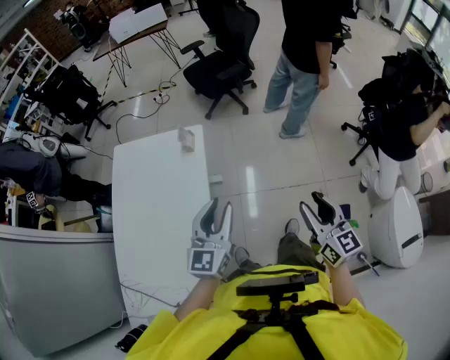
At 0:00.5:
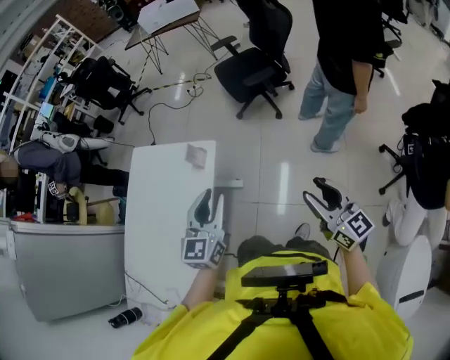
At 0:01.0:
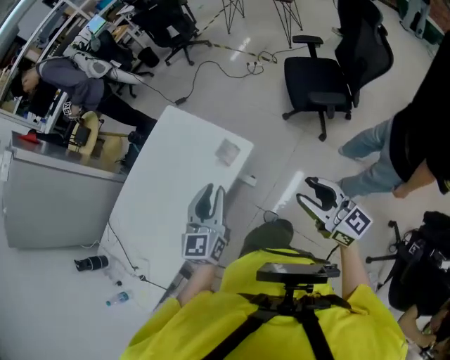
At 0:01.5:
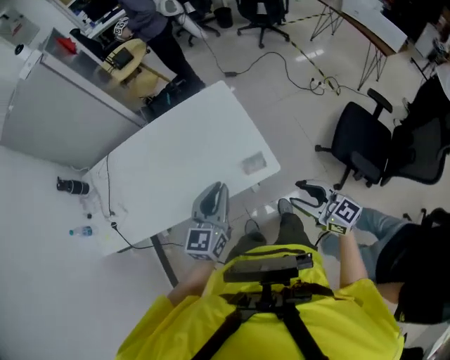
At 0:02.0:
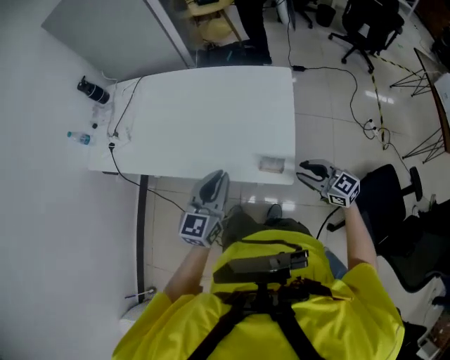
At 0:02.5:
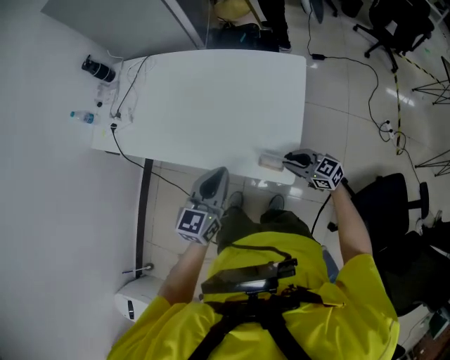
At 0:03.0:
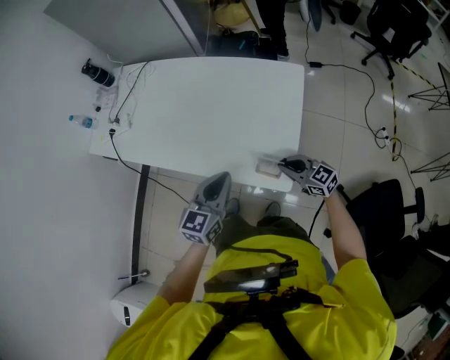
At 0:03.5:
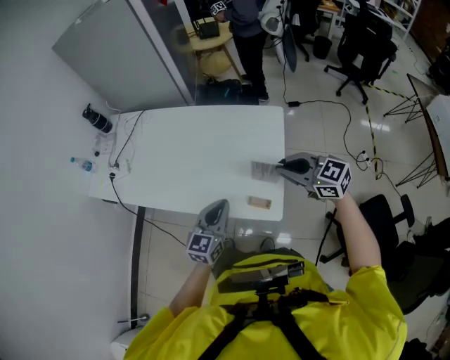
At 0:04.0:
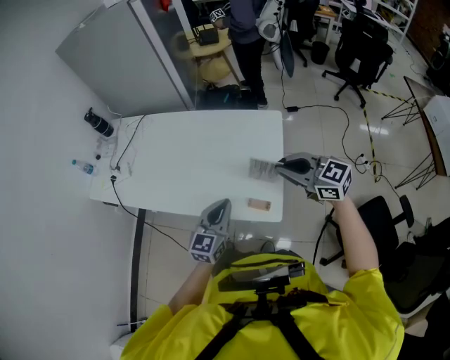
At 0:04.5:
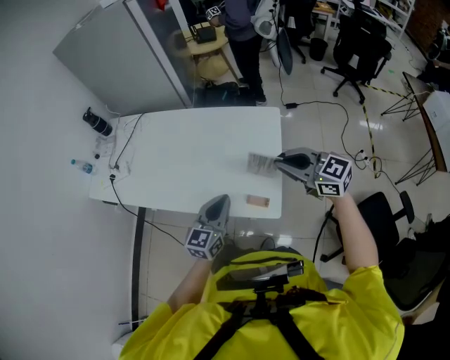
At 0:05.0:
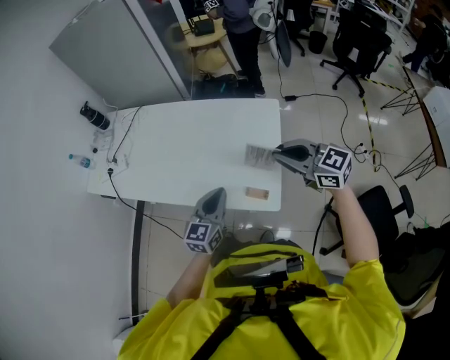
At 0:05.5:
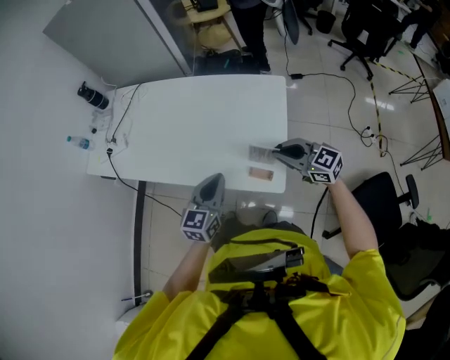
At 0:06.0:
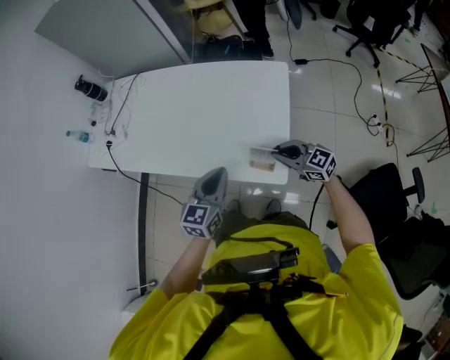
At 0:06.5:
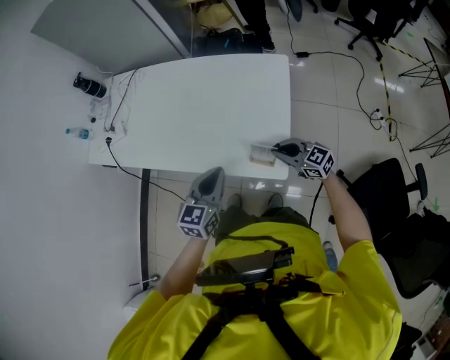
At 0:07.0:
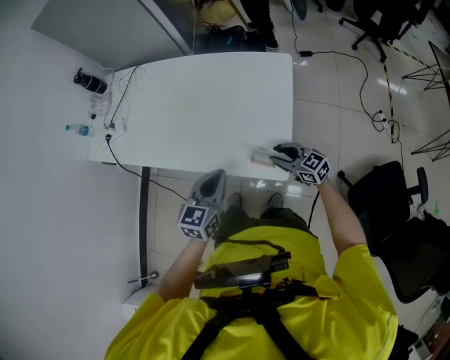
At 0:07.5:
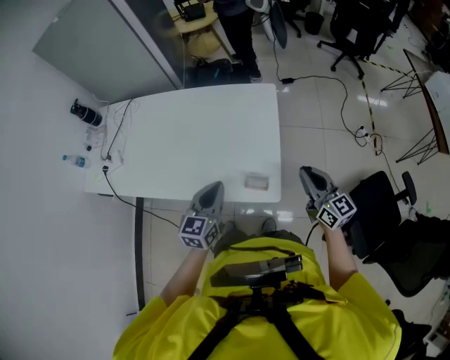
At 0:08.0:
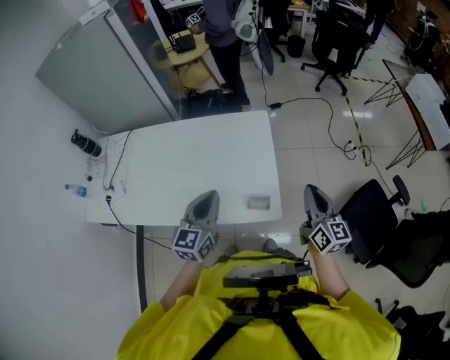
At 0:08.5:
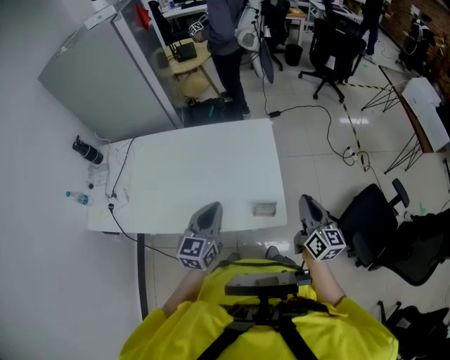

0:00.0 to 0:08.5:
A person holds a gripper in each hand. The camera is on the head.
0:00.0 to 0:02.0: The right gripper moves approximately 60 cm, and changes its angle by roughly 130 degrees; the left gripper ends up approximately 30 cm from where it was, changes its angle by some 90 degrees, and closes.
0:02.0 to 0:04.0: The right gripper travels upward and forward by roughly 20 cm, and closes its fingers. The left gripper is displaced to the right by about 5 cm.
0:04.0 to 0:06.5: The right gripper travels downward by roughly 25 cm.
0:06.5 to 0:08.5: The left gripper is displaced upward by roughly 10 cm. The right gripper heads upward, covering approximately 20 cm, turns by about 70 degrees, and opens and closes again.

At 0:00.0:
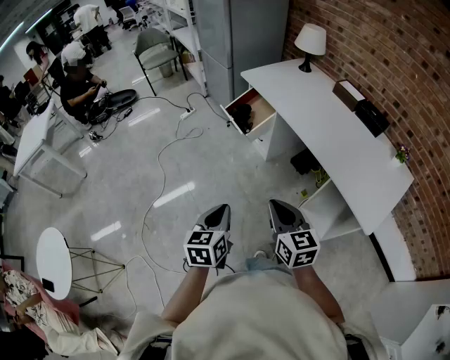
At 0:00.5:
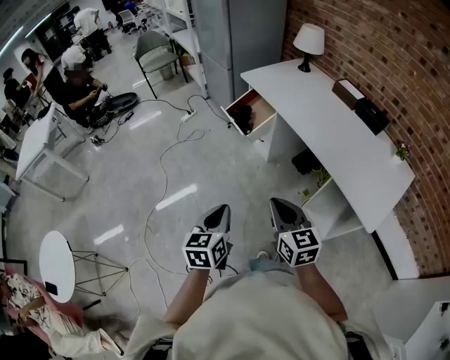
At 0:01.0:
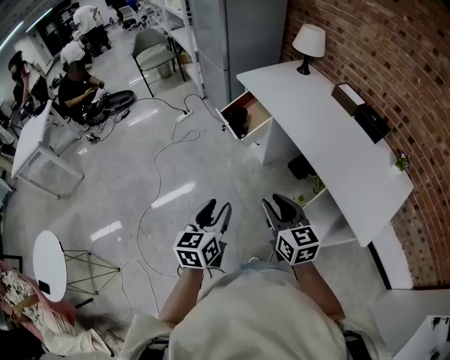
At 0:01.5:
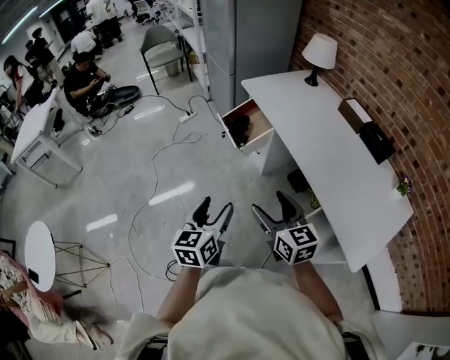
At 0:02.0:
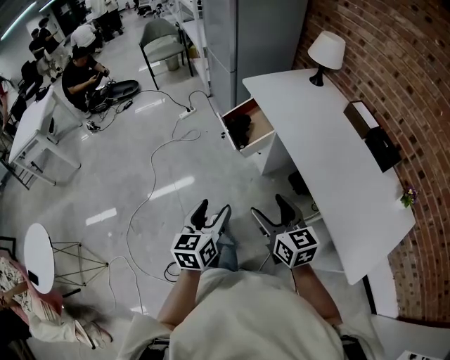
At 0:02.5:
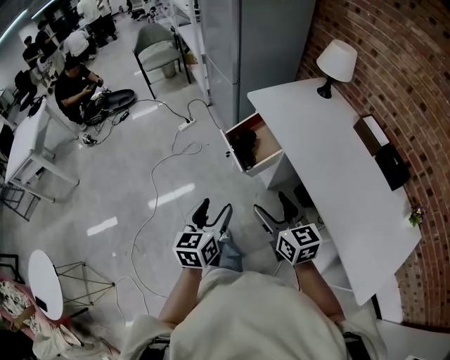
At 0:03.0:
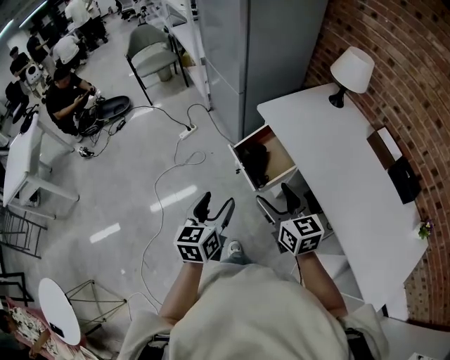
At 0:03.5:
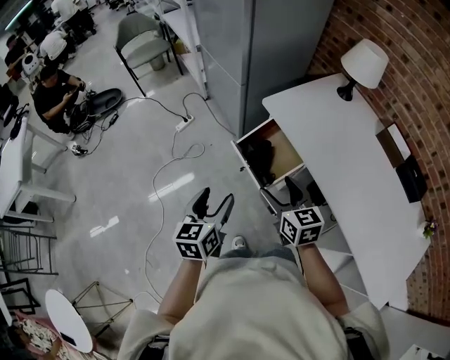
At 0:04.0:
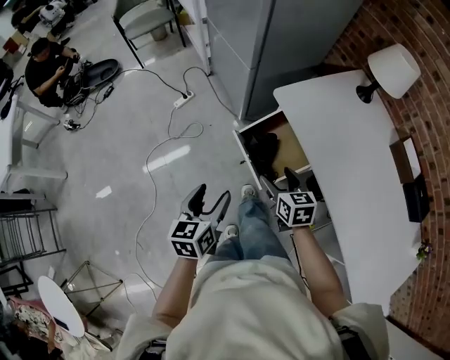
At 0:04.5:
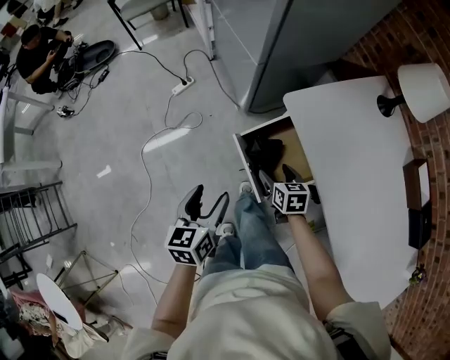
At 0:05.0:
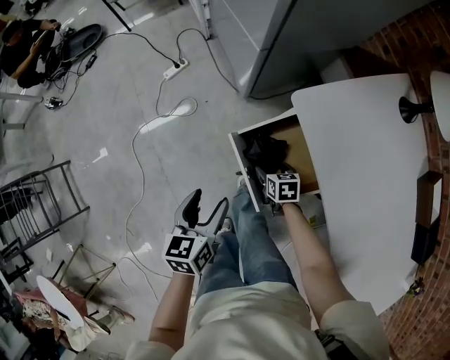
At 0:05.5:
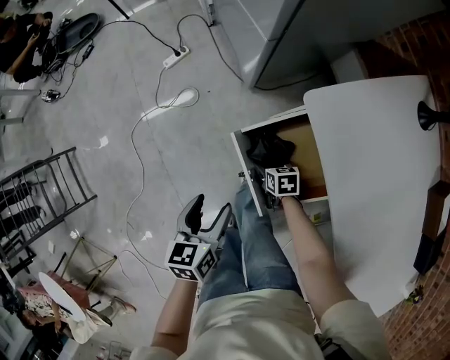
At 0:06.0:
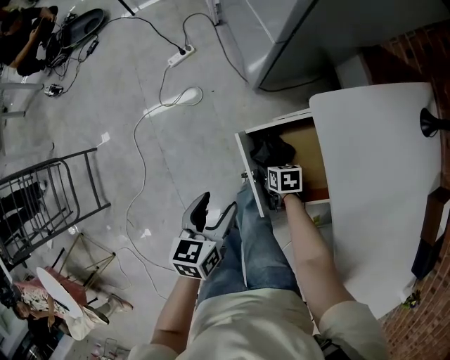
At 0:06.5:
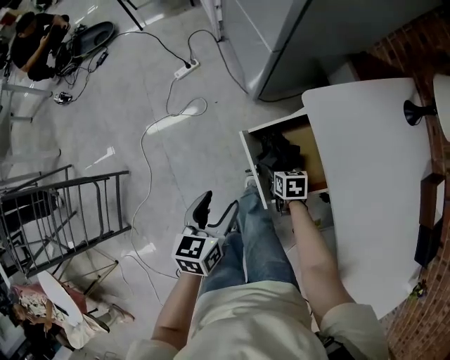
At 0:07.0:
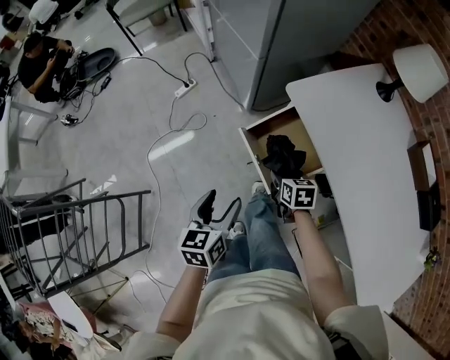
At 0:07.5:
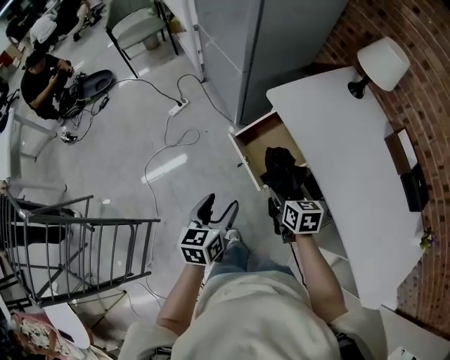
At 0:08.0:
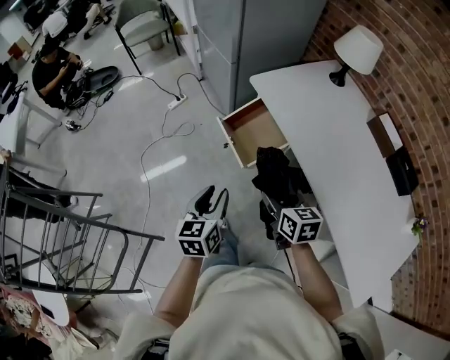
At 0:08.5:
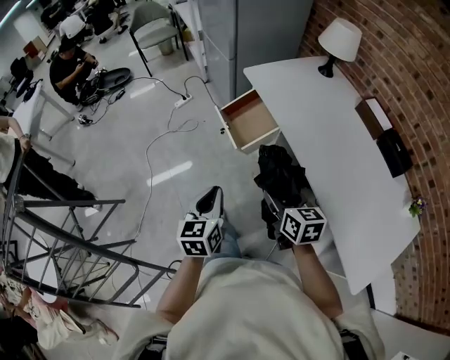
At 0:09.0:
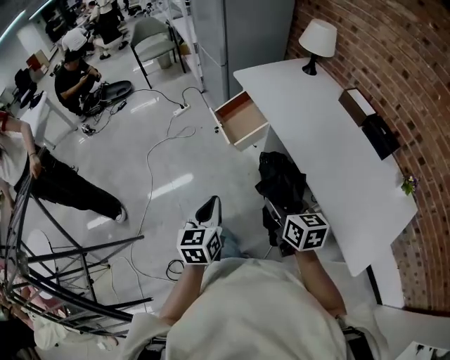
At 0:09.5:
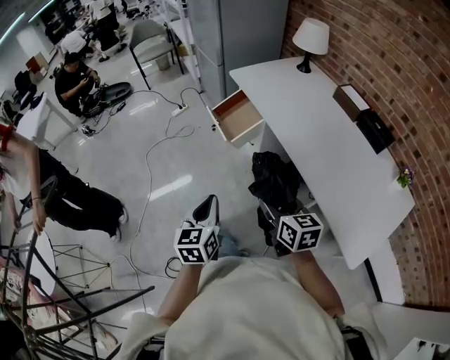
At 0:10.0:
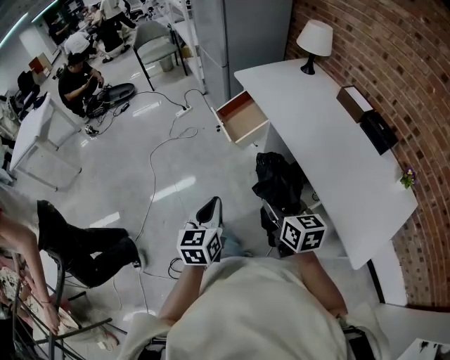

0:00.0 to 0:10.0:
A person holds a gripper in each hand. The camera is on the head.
0:00.0 to 0:02.0: Both grippers travel together forward and to the right, some 15 cm. The right gripper opens. The left gripper opens up.
0:02.0 to 0:04.0: Both grippers are carried forward, roughly 40 cm. The right gripper rotates about 20 degrees.
0:04.0 to 0:06.0: The right gripper heads downward and forward, covering approximately 35 cm, and turns by roughly 30 degrees; the left gripper is displaced downward and forward by roughly 20 cm.
0:06.0 to 0:08.0: The left gripper moves backward and upward, approximately 30 cm, and closes; the right gripper travels upward and backward by about 50 cm, and tilts its fingers roughly 30 degrees upward.
0:08.0 to 0:10.0: Both grippers move backward, roughly 30 cm. The left gripper closes its fingers.

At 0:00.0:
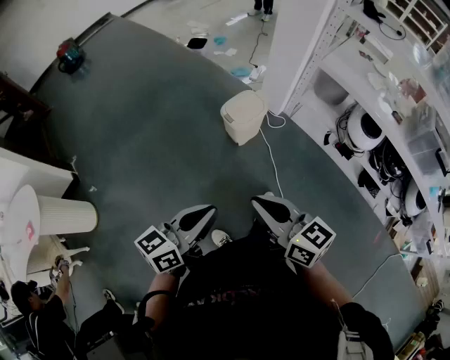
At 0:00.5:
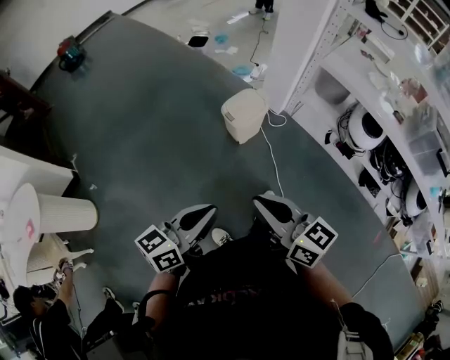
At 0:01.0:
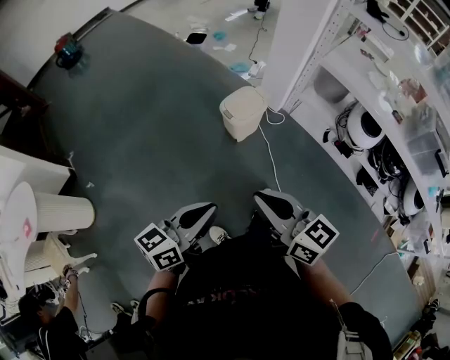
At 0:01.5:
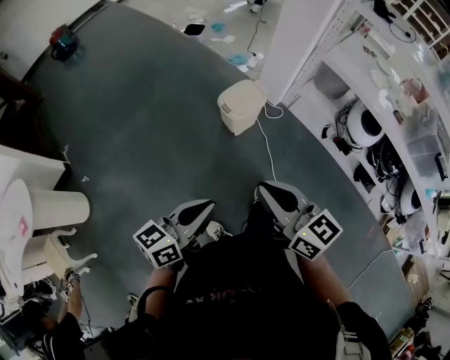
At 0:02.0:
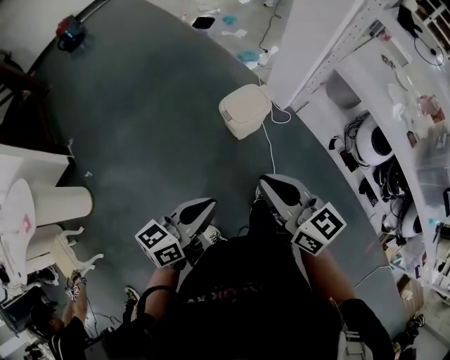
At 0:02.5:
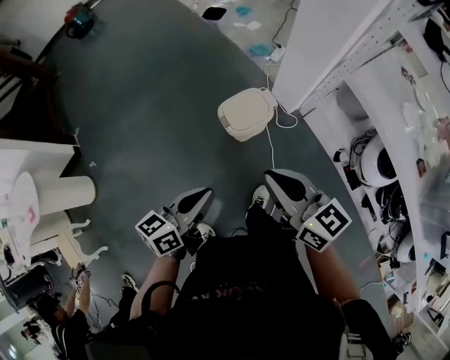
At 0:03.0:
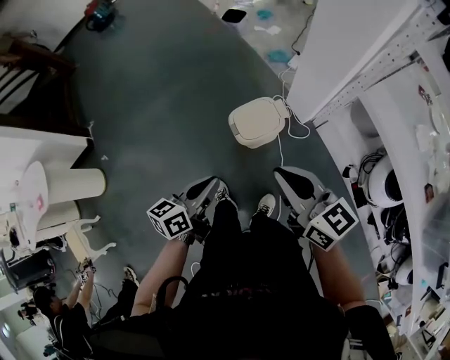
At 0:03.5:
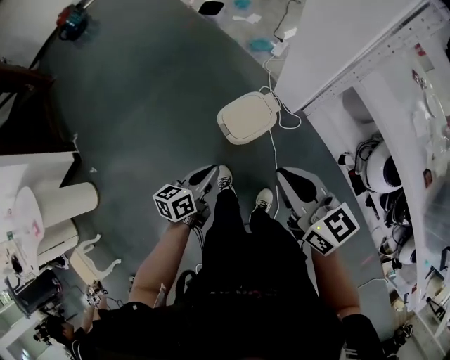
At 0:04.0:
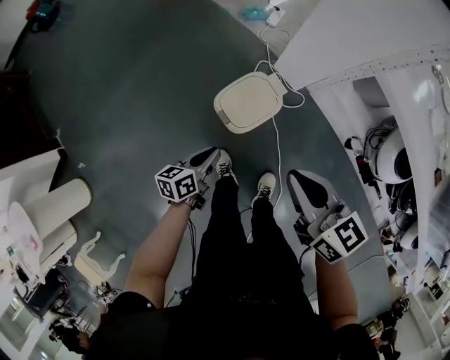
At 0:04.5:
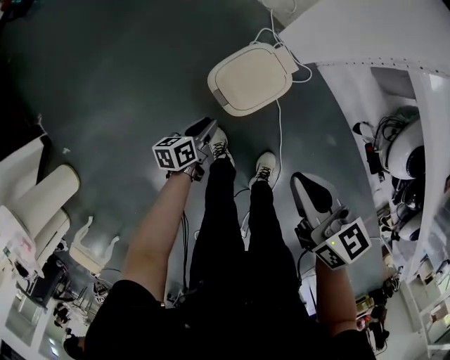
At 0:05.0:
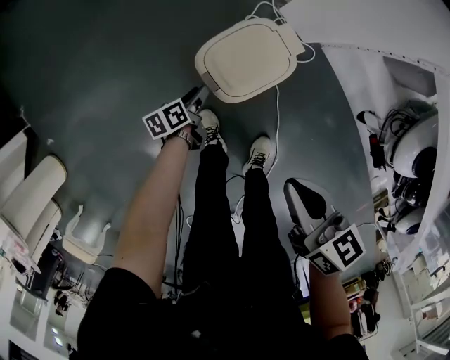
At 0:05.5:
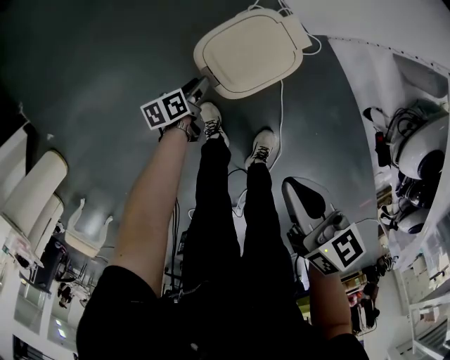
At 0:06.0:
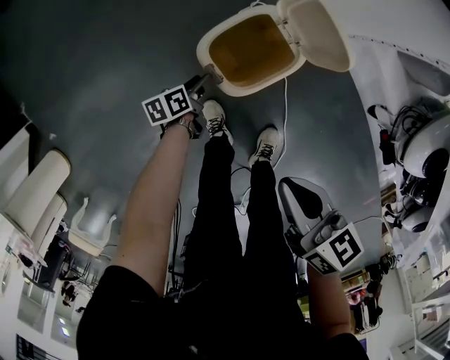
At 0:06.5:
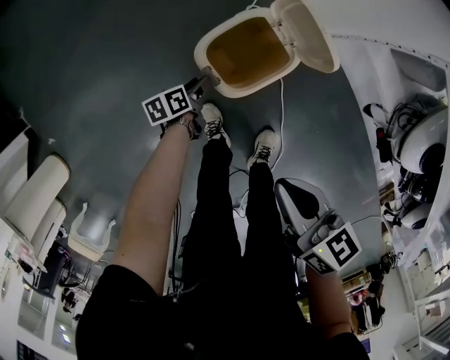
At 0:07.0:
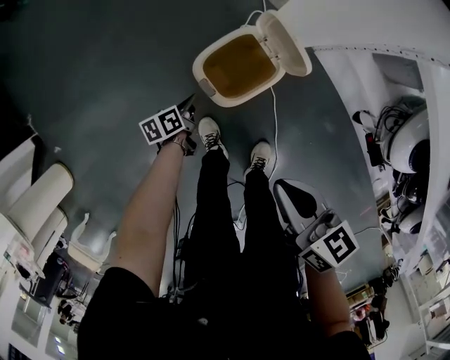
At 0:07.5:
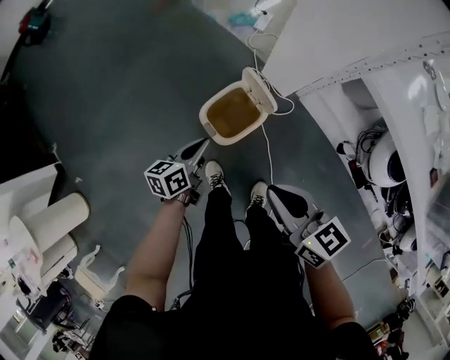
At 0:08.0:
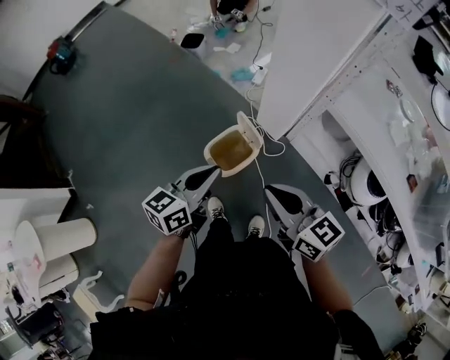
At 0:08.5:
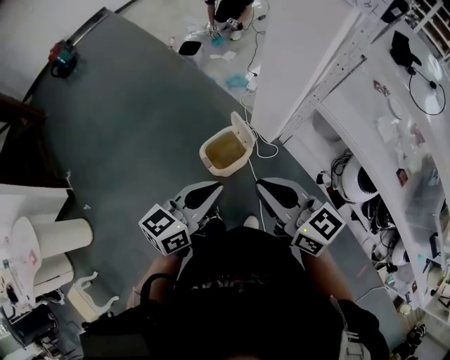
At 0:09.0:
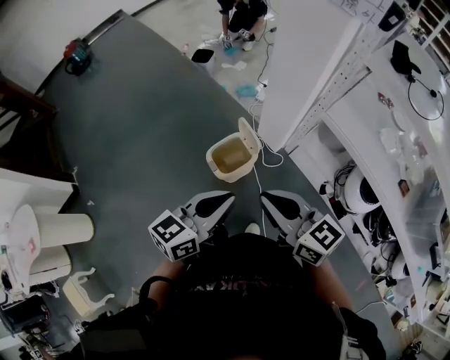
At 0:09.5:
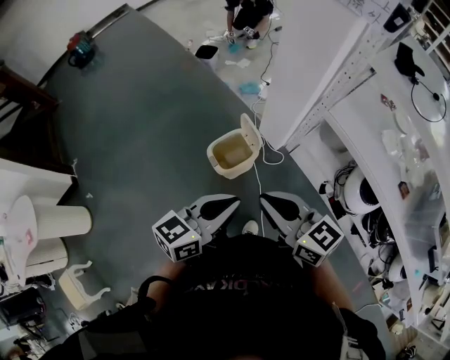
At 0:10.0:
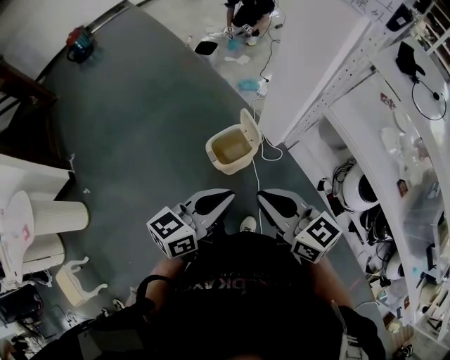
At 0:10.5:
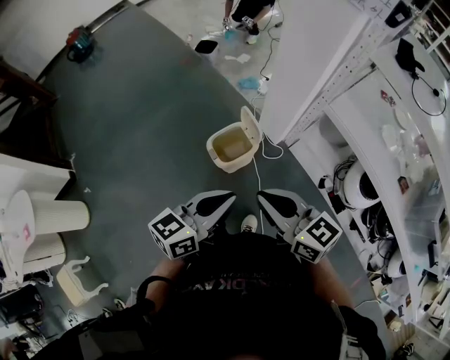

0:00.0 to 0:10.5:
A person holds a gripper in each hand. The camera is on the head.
0:00.0 to 0:02.0: The two grippers go approximately 15 cm forward.
0:02.0 to 0:04.0: Both grippers move forward and downward, some 40 cm. The left gripper turns by roughly 20 degrees.
0:04.0 to 0:06.5: The left gripper is displaced downward by roughly 30 cm, changes its angle by about 30 degrees, and opens up; the right gripper heads downward, covering approximately 20 cm, and turns by approximately 20 degrees.
0:06.5 to 0:08.5: The right gripper shifts some 35 cm upward, and turns by roughly 40 degrees. The left gripper moves upward, roughly 70 cm, points its fingers roughly 40 degrees further upward, and closes.
0:08.5 to 0:10.5: The grippers both shift backward by some 10 cm.
